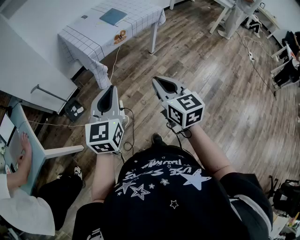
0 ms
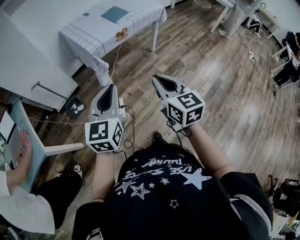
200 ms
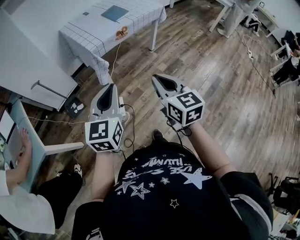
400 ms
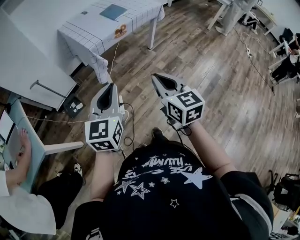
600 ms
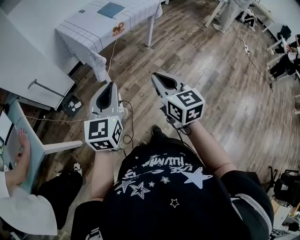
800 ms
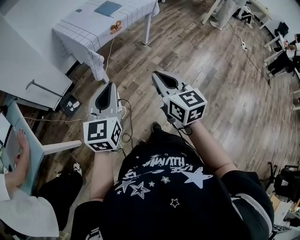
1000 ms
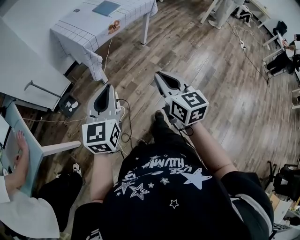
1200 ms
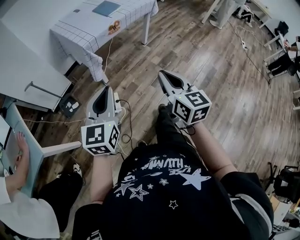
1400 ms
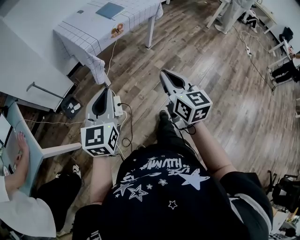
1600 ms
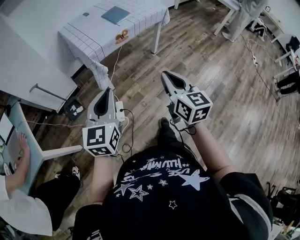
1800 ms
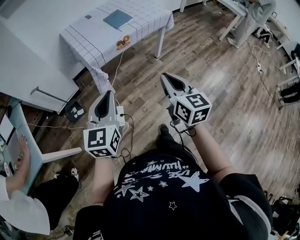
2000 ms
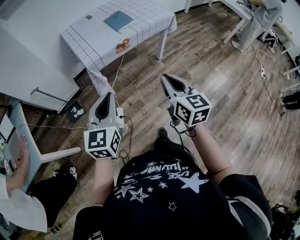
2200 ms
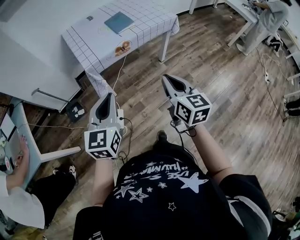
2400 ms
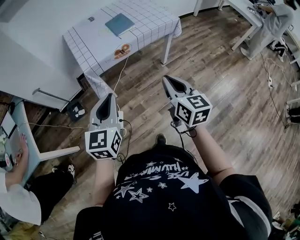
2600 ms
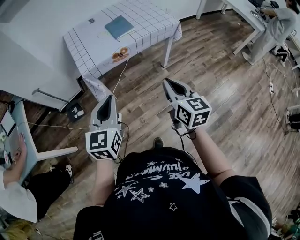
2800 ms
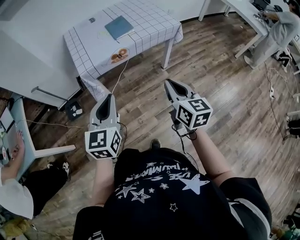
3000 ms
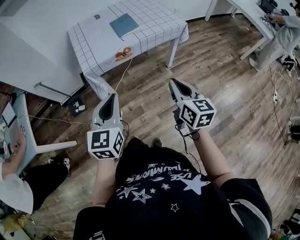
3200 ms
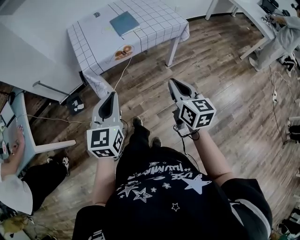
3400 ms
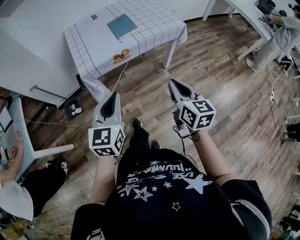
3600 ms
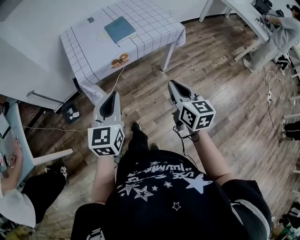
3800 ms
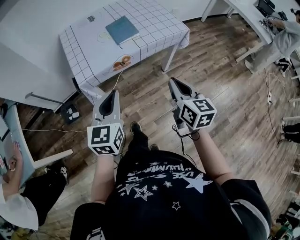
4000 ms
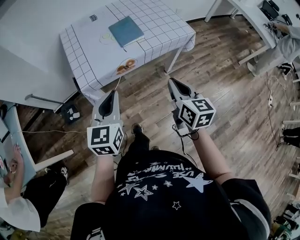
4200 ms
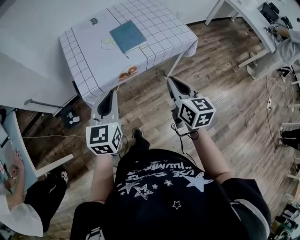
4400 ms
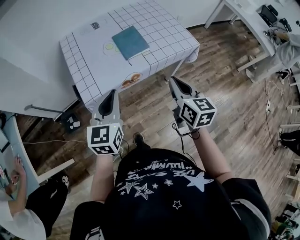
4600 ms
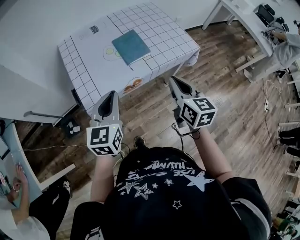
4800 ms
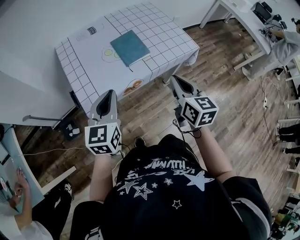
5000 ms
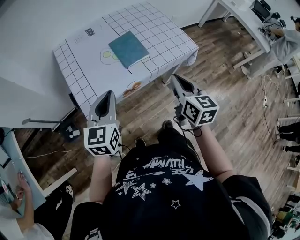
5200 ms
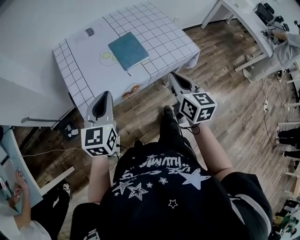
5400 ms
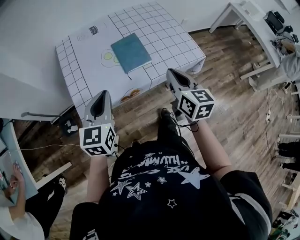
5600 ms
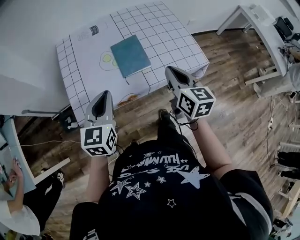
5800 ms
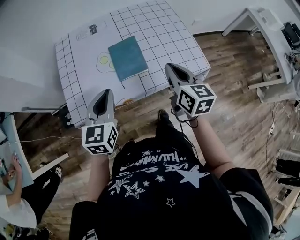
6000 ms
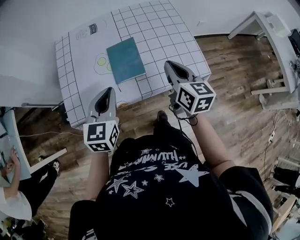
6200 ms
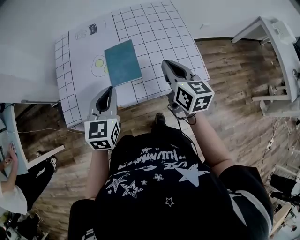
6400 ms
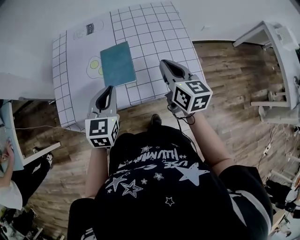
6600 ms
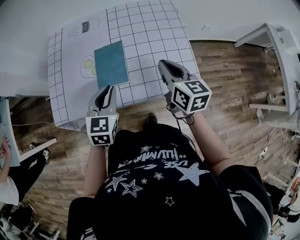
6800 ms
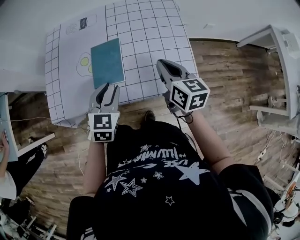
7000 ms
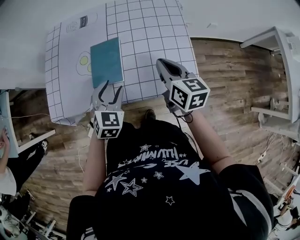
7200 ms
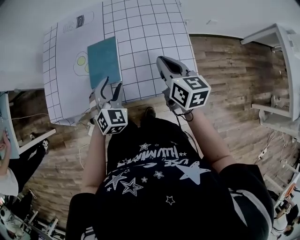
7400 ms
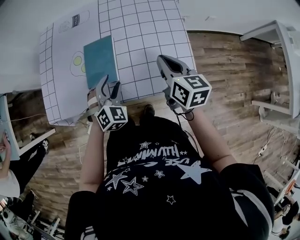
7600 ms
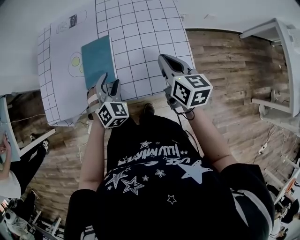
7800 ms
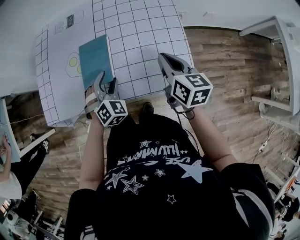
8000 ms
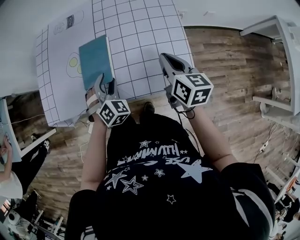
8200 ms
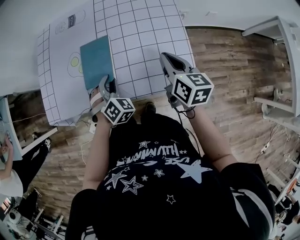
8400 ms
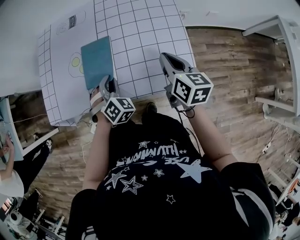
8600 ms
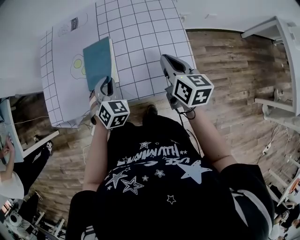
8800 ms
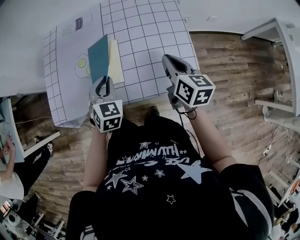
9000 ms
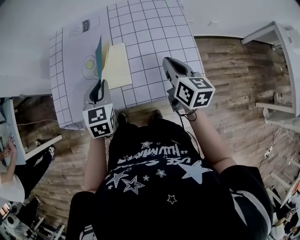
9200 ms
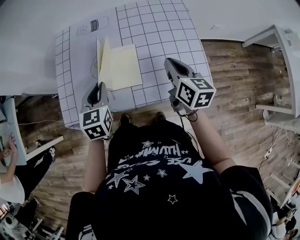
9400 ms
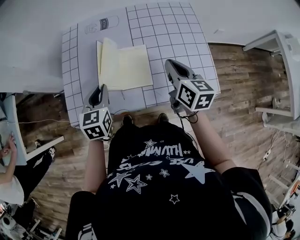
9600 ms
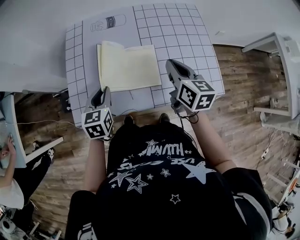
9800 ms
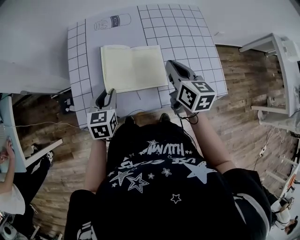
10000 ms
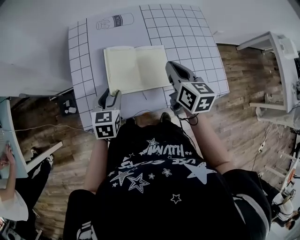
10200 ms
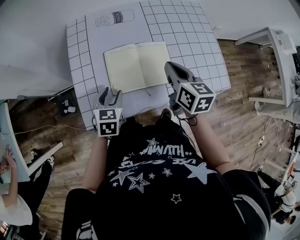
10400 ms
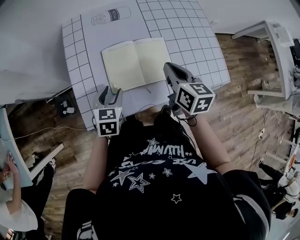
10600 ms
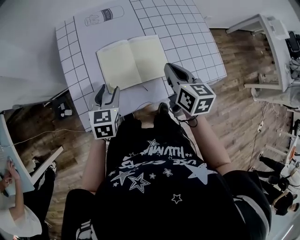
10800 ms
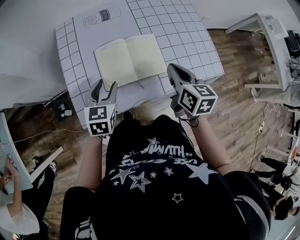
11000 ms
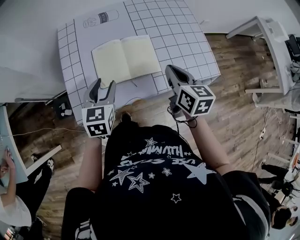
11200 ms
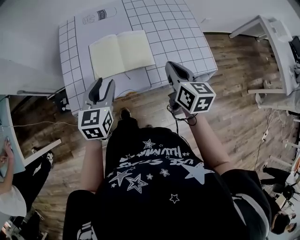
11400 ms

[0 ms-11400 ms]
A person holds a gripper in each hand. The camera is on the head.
0 ms to 1400 ms: The right gripper moves about 5 cm, while the left gripper changes place by approximately 5 cm.
1400 ms to 2800 ms: Both grippers travel together forward and to the right, roughly 30 cm.
2800 ms to 4200 ms: Both grippers move forward, approximately 15 cm.
4200 ms to 5600 ms: The two grippers go some 20 cm forward.
5600 ms to 7200 ms: The right gripper is displaced forward and to the right by roughly 25 cm, and swivels some 30 degrees. The left gripper travels to the right, downward and forward by some 25 cm, rotates about 30 degrees, and opens up.
7200 ms to 8600 ms: The left gripper travels downward by some 5 cm, changes its angle by roughly 30 degrees, and closes, while the right gripper ends up some 5 cm from where it was.
8600 ms to 10000 ms: The two grippers go approximately 20 cm to the left. The left gripper rolls counterclockwise, seen from behind, by some 50 degrees.
10000 ms to 11400 ms: The left gripper is displaced upward and backward by some 10 cm, while the right gripper goes some 10 cm backward.

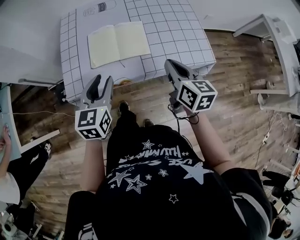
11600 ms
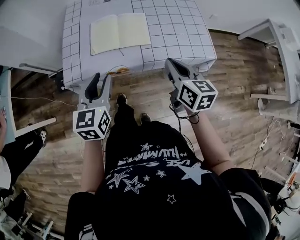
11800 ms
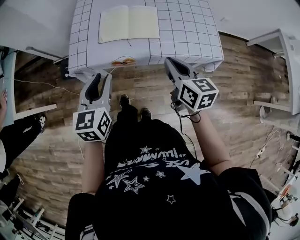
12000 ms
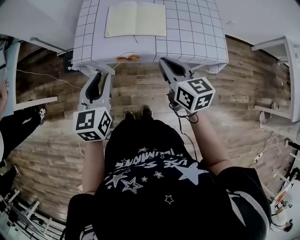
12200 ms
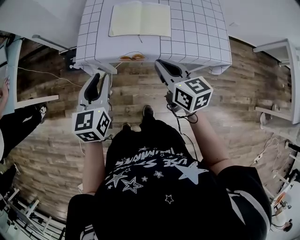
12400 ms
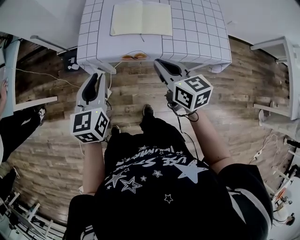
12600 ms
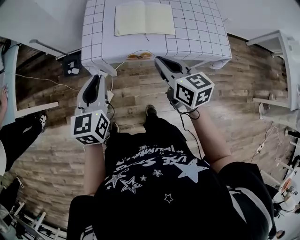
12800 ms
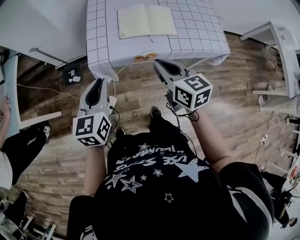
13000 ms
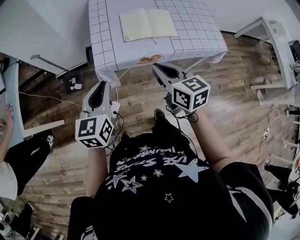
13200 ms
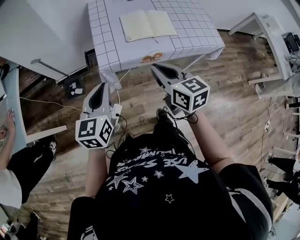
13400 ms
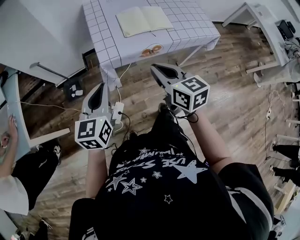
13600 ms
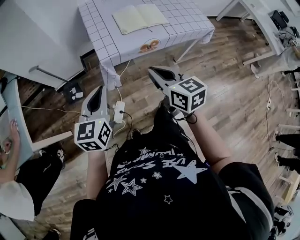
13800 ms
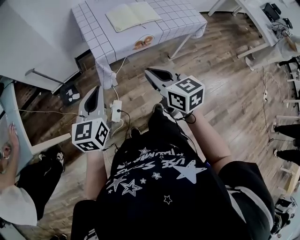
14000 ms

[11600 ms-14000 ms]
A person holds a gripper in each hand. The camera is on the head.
11600 ms to 12800 ms: The right gripper travels to the left by about 15 cm, and swivels about 20 degrees; the left gripper shifts approximately 15 cm to the left and backward, and closes up.
12800 ms to 14000 ms: The two grippers go some 20 cm to the left and backward. The left gripper turns by approximately 20 degrees.

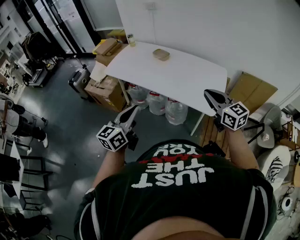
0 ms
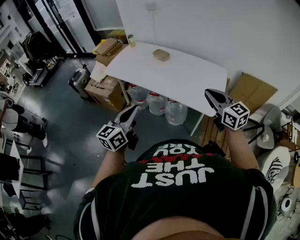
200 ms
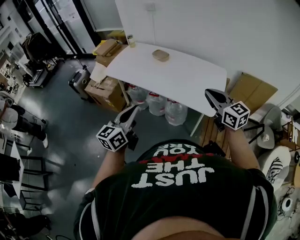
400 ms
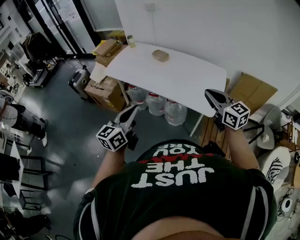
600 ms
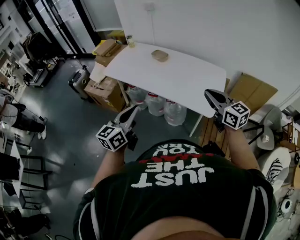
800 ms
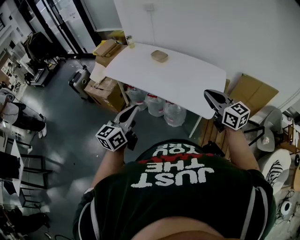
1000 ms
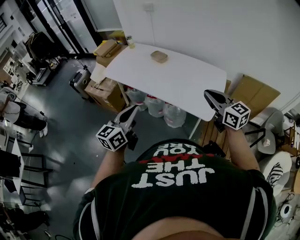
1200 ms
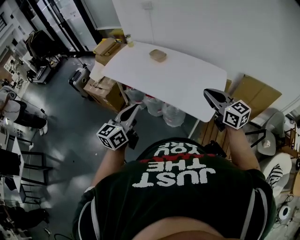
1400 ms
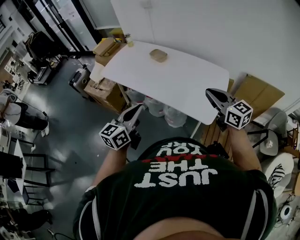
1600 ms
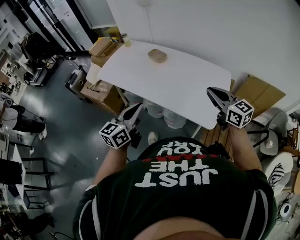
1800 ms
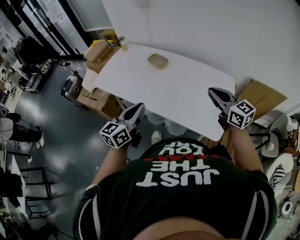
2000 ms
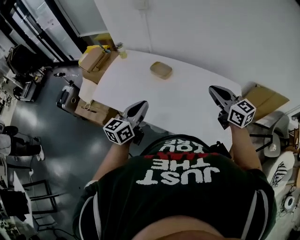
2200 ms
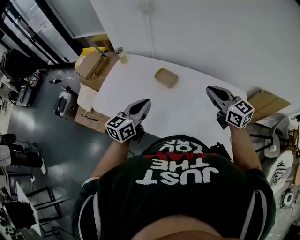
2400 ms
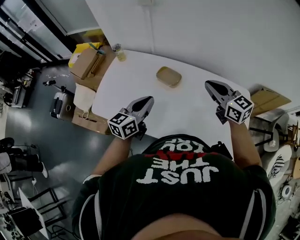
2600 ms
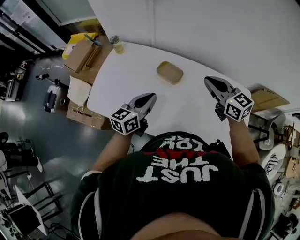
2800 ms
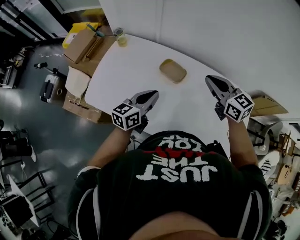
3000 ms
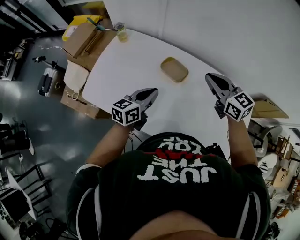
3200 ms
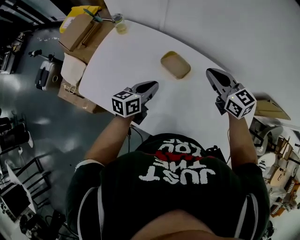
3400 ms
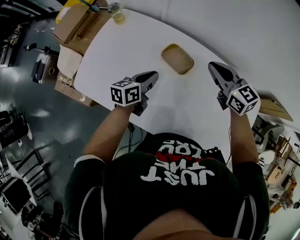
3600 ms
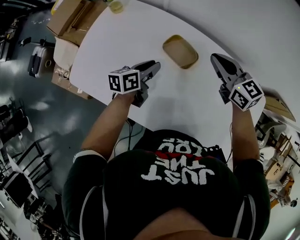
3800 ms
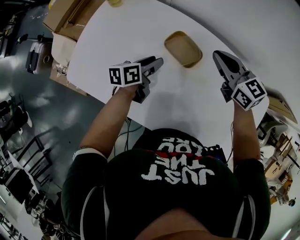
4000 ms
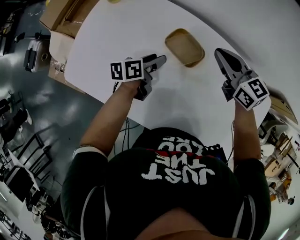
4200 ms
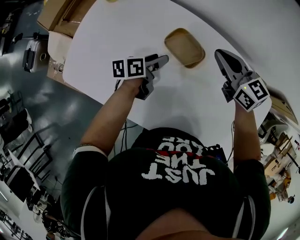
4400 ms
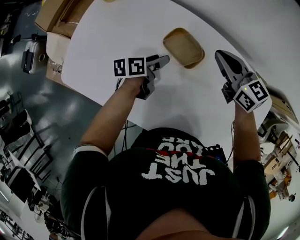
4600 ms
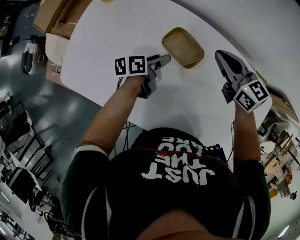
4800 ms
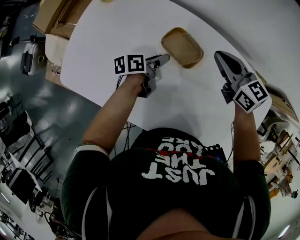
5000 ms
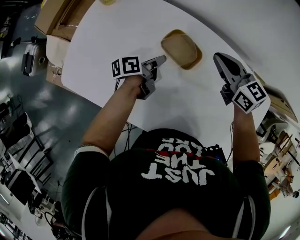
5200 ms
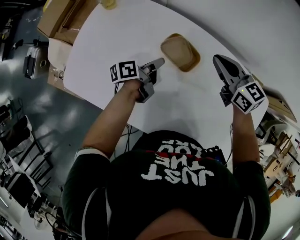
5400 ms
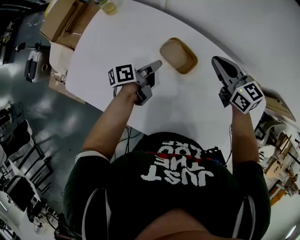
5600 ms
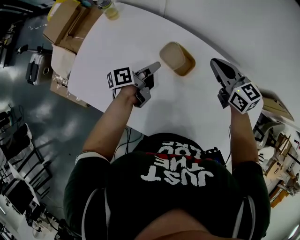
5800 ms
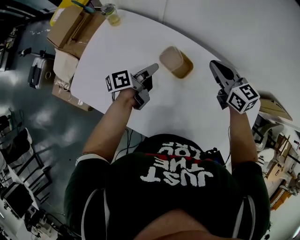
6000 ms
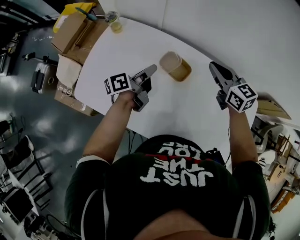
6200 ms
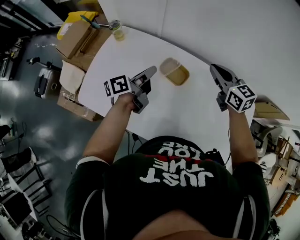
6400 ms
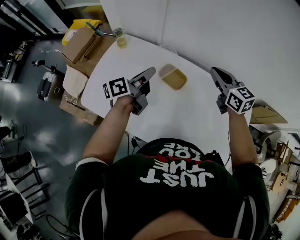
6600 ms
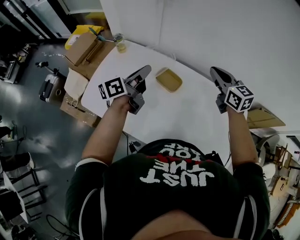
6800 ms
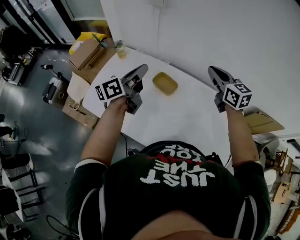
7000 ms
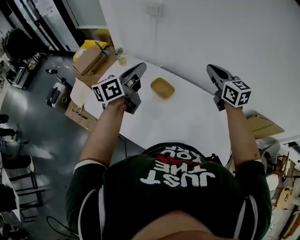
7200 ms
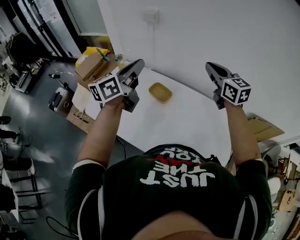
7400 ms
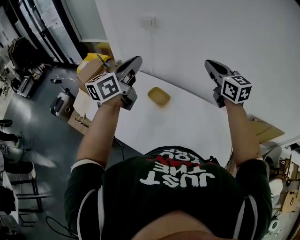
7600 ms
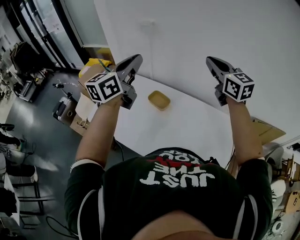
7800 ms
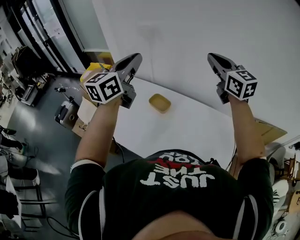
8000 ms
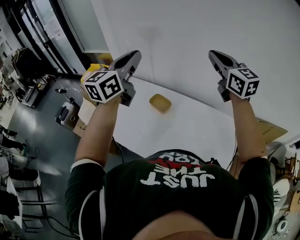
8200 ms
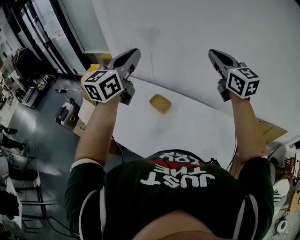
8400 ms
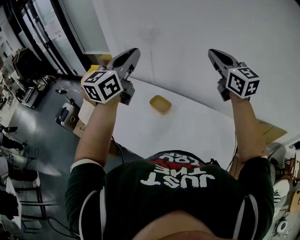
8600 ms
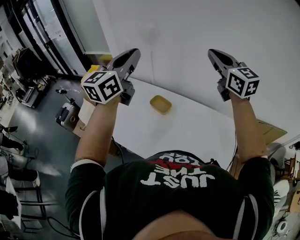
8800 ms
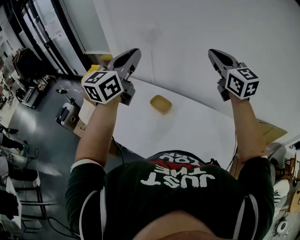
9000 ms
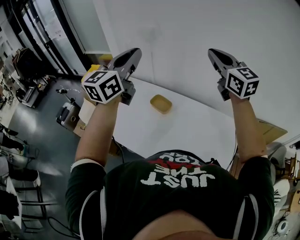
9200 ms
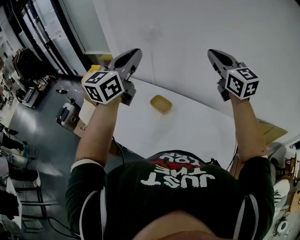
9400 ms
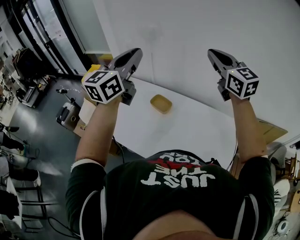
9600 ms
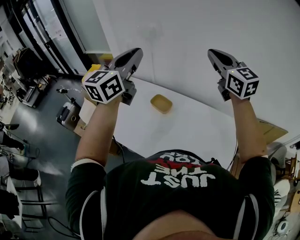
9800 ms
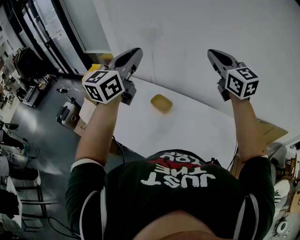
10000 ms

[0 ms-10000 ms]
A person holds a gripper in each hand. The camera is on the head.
0 ms to 1400 ms: Both grippers move to the right, approximately 10 cm.
1400 ms to 2800 ms: Both grippers are carried forward, about 50 cm. The left gripper turns by roughly 20 degrees.
2800 ms to 4200 ms: The two grippers go about 25 cm downward and forward. The left gripper swivels roughly 40 degrees, and opens.
4200 ms to 5800 ms: The left gripper moves upward, roughly 5 cm, turns by roughly 20 degrees, and closes.
5800 ms to 7200 ms: The right gripper is displaced upward by some 20 cm, while the left gripper moves upward, about 35 cm, and twists about 40 degrees clockwise, seen from behind.
7200 ms to 8600 ms: Both grippers move upward, some 15 cm. The left gripper changes its angle by about 40 degrees.
8600 ms to 10000 ms: Neither gripper changes place.
